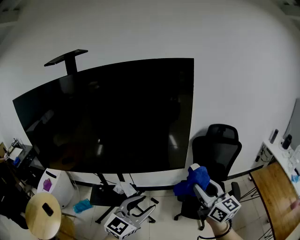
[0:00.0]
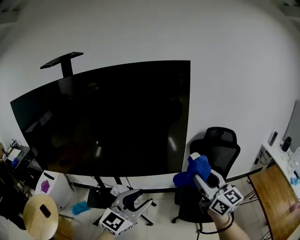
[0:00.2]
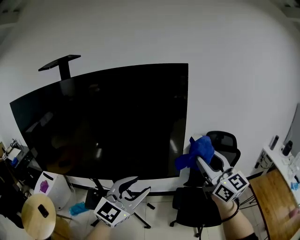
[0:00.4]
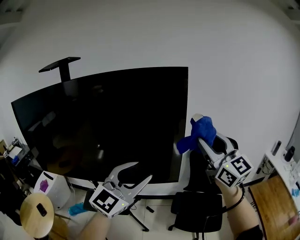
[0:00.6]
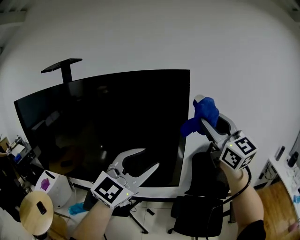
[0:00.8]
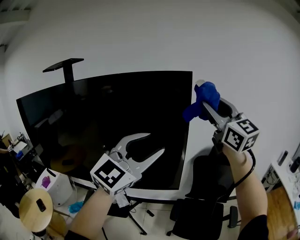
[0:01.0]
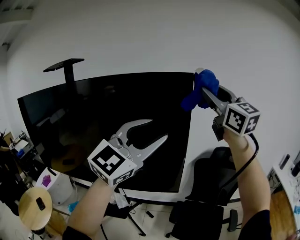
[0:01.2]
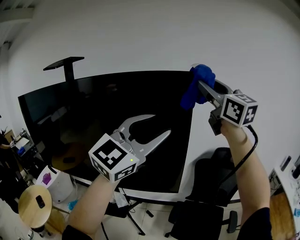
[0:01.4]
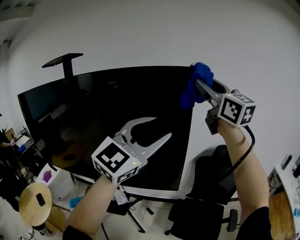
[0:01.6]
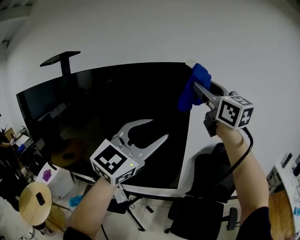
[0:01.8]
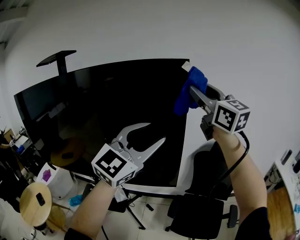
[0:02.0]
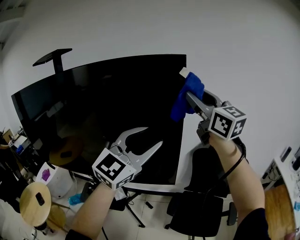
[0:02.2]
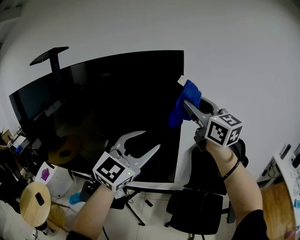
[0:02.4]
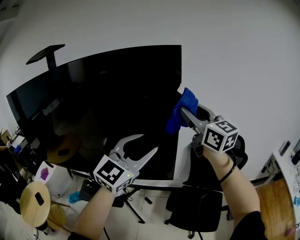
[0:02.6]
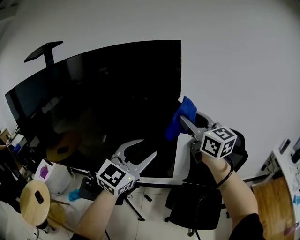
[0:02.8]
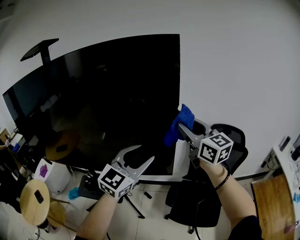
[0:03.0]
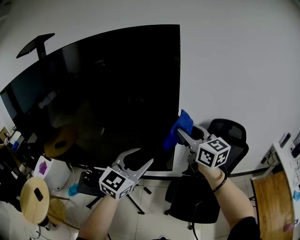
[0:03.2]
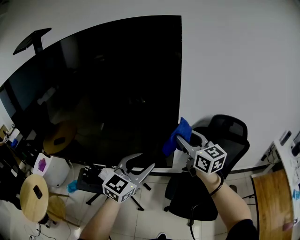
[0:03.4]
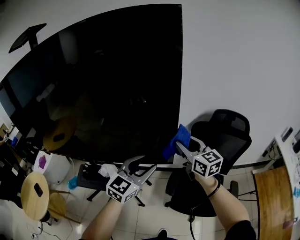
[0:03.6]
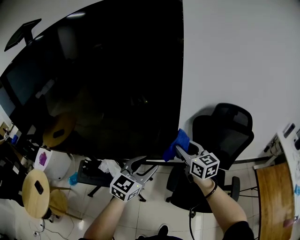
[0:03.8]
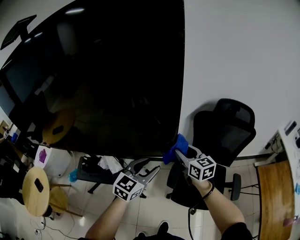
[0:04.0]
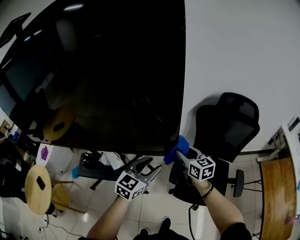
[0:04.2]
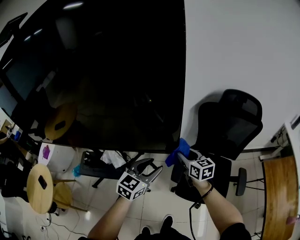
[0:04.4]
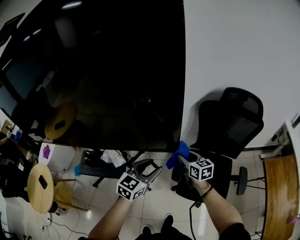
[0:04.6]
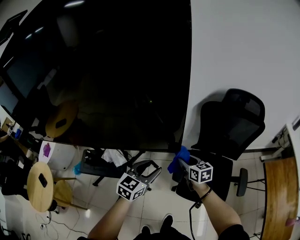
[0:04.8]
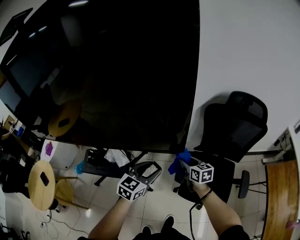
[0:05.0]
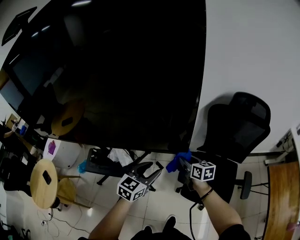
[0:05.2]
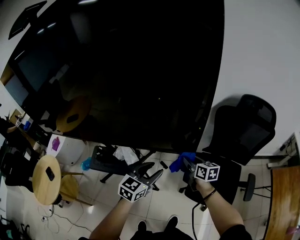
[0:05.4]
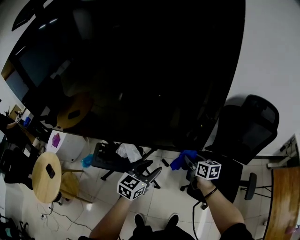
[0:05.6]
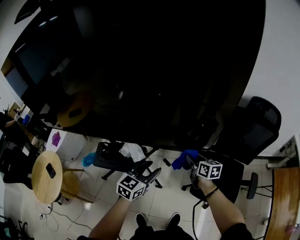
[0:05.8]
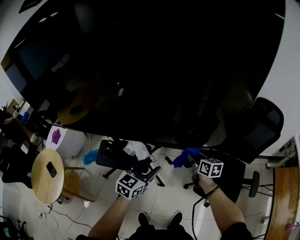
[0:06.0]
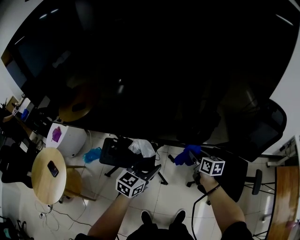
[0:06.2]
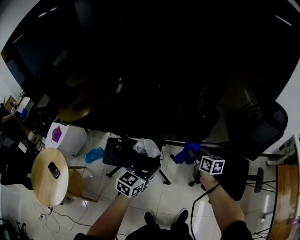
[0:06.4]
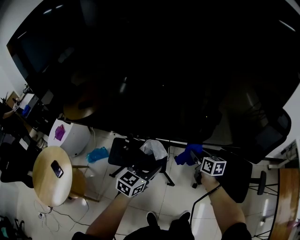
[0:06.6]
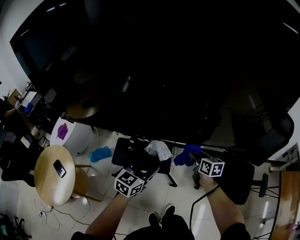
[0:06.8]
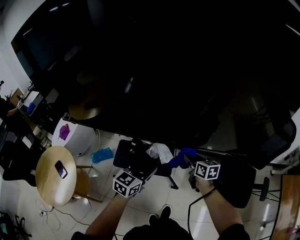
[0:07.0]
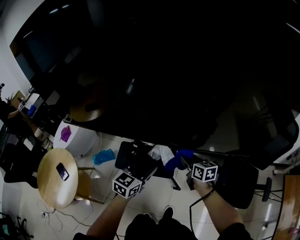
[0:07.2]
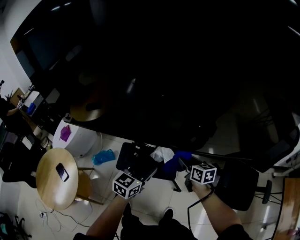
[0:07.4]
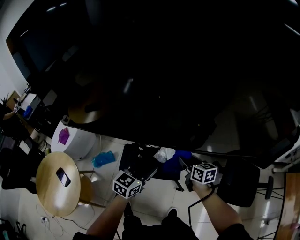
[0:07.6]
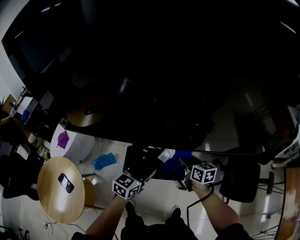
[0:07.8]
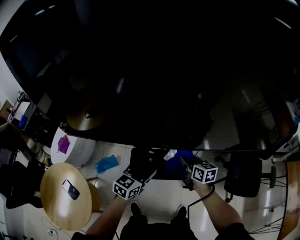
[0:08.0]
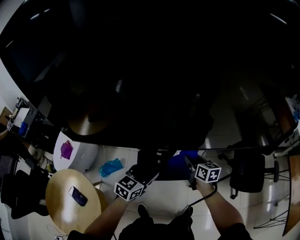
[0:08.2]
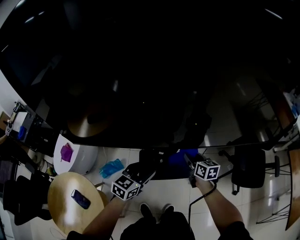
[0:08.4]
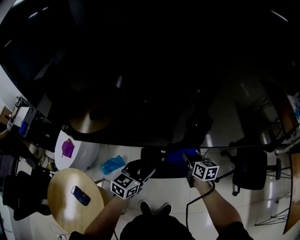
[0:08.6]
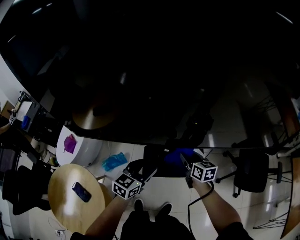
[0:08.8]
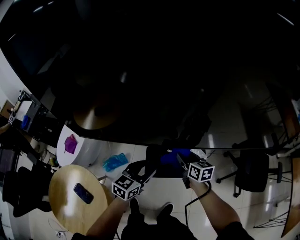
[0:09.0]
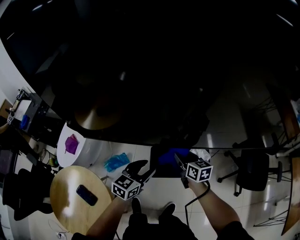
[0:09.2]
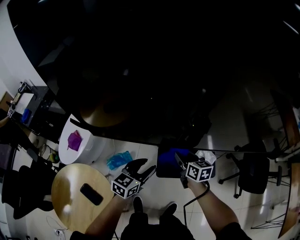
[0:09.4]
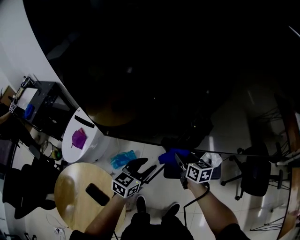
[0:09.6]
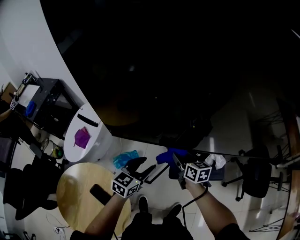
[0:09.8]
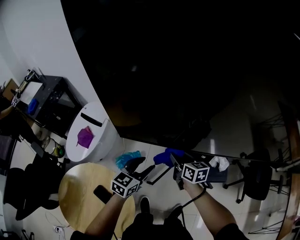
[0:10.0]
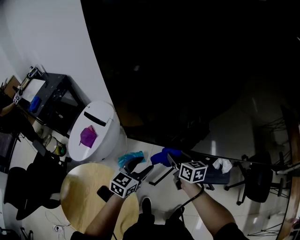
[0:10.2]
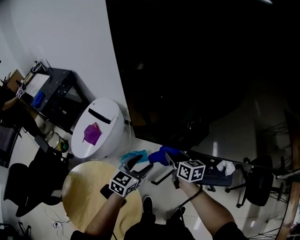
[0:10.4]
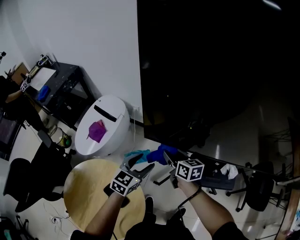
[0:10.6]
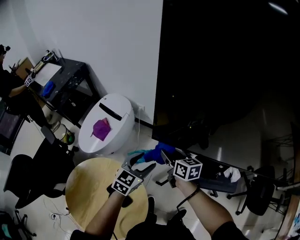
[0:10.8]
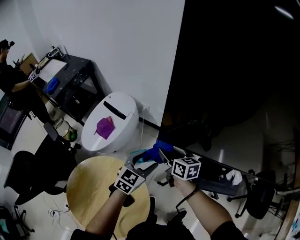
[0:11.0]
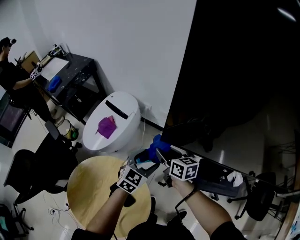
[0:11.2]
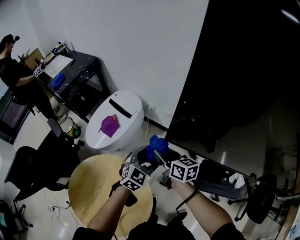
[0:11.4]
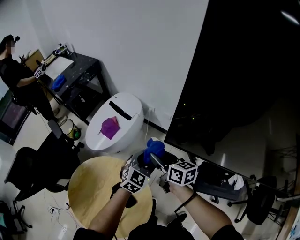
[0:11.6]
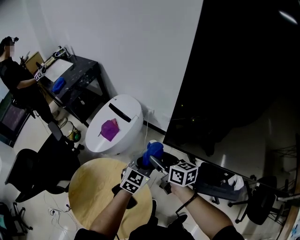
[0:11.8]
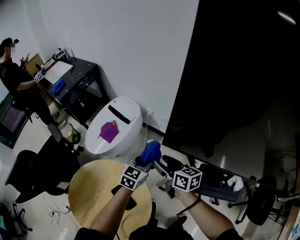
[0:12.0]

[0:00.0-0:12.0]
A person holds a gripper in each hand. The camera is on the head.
0:00.0 to 0:01.6: The two grippers go roughly 40 cm upward and forward. The right gripper changes its angle by about 30 degrees. Meanwhile the left gripper changes its angle by about 20 degrees.
0:01.6 to 0:03.0: The grippers both shift downward by roughly 25 cm.
0:03.0 to 0:04.4: The two grippers go some 35 cm downward. The left gripper changes its angle by approximately 30 degrees. Meanwhile the right gripper swivels roughly 30 degrees.
0:04.4 to 0:06.0: The two grippers go some 20 cm to the left.
0:06.0 to 0:07.6: Both grippers travel together to the left, about 30 cm.
0:07.6 to 0:09.0: The two grippers go approximately 20 cm to the left.
0:09.0 to 0:10.4: The two grippers go about 35 cm to the left.
0:10.4 to 0:12.0: The right gripper shifts about 15 cm to the left, and opens. The left gripper travels to the left and forward by roughly 10 cm, and closes.

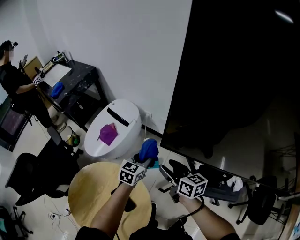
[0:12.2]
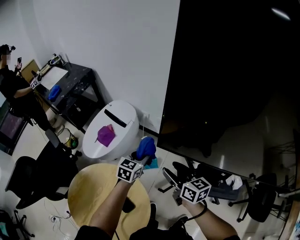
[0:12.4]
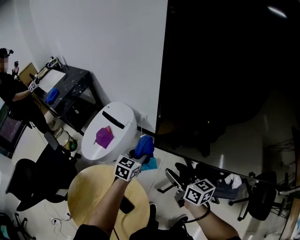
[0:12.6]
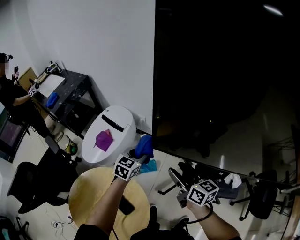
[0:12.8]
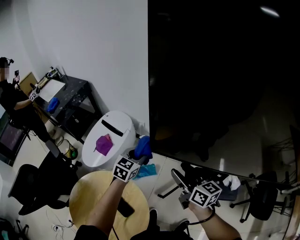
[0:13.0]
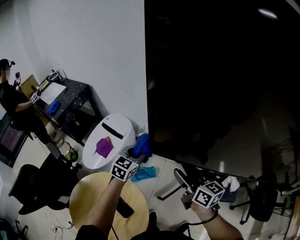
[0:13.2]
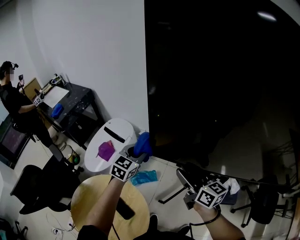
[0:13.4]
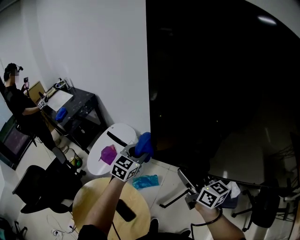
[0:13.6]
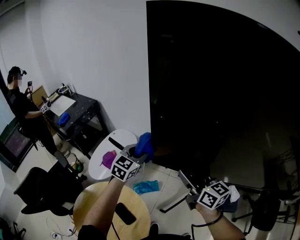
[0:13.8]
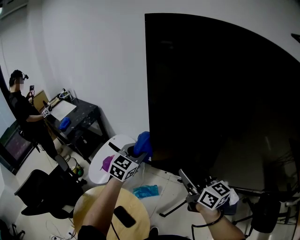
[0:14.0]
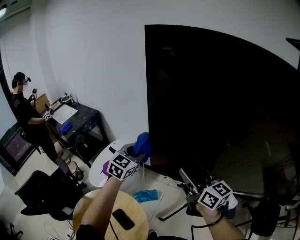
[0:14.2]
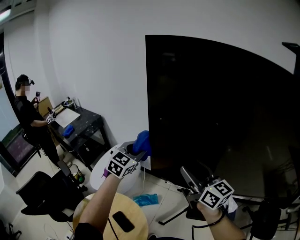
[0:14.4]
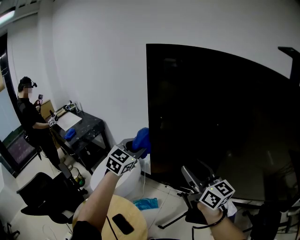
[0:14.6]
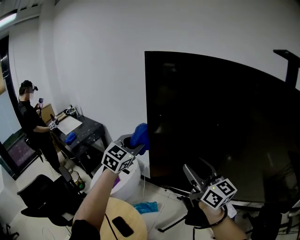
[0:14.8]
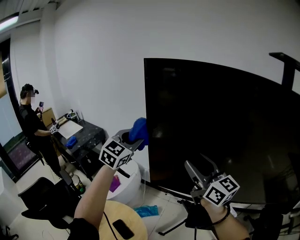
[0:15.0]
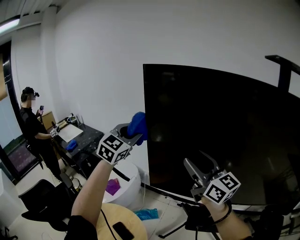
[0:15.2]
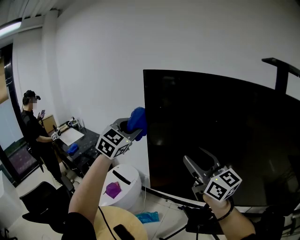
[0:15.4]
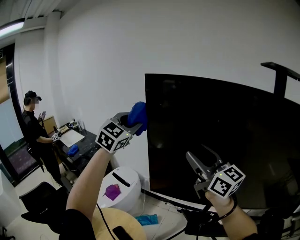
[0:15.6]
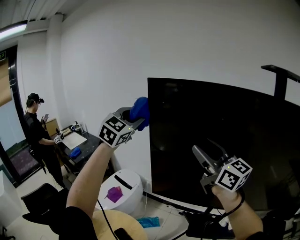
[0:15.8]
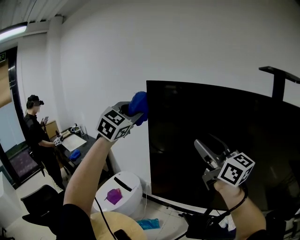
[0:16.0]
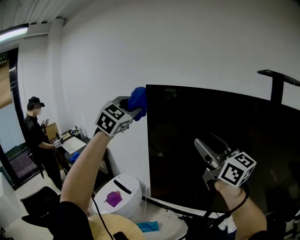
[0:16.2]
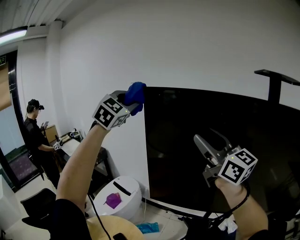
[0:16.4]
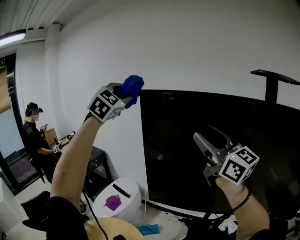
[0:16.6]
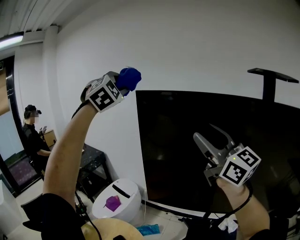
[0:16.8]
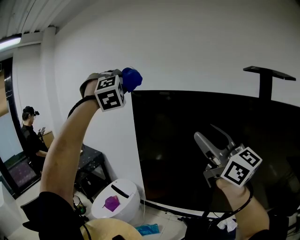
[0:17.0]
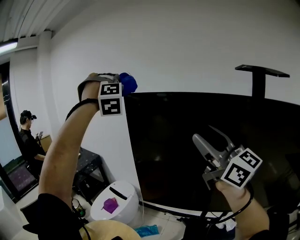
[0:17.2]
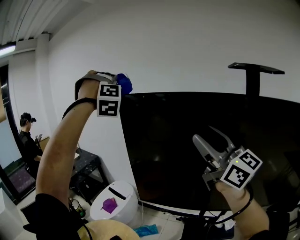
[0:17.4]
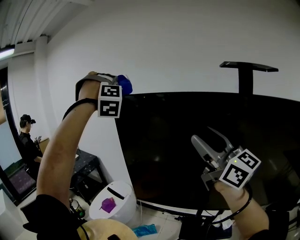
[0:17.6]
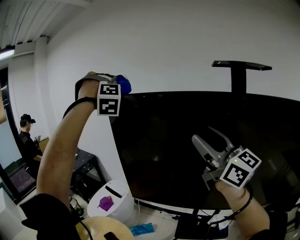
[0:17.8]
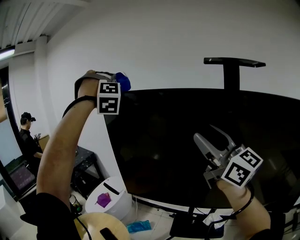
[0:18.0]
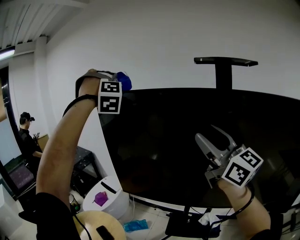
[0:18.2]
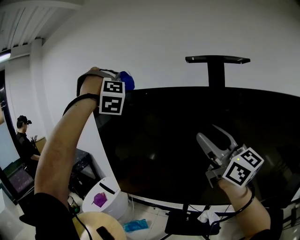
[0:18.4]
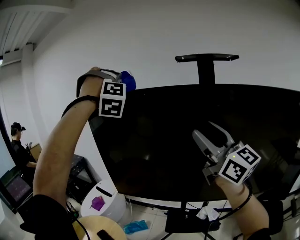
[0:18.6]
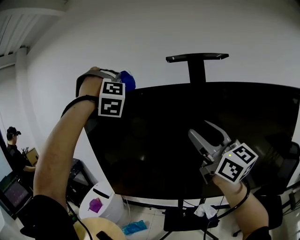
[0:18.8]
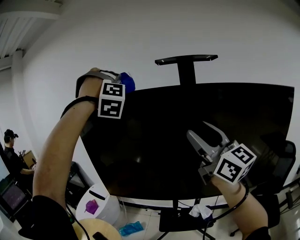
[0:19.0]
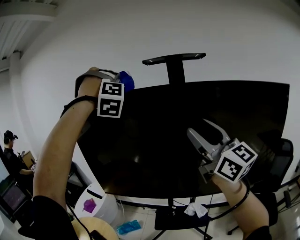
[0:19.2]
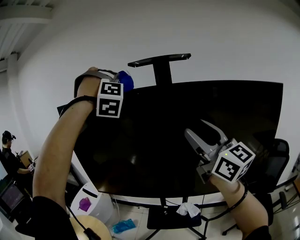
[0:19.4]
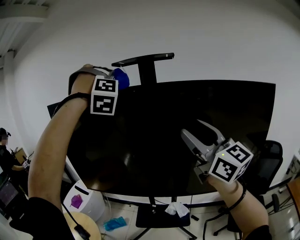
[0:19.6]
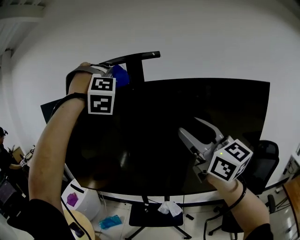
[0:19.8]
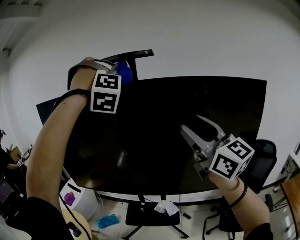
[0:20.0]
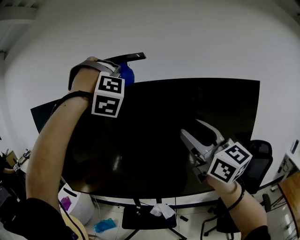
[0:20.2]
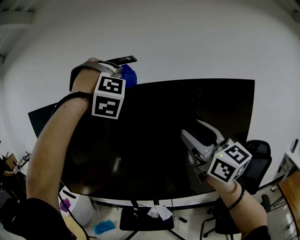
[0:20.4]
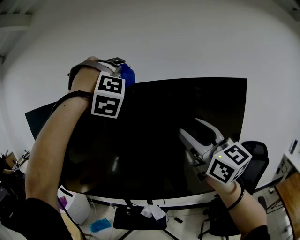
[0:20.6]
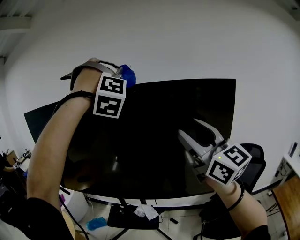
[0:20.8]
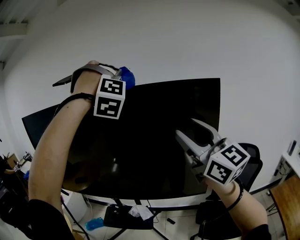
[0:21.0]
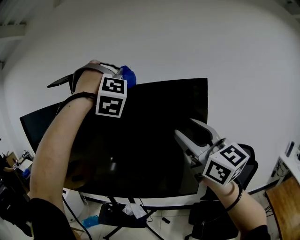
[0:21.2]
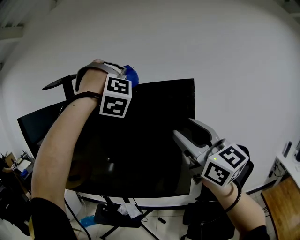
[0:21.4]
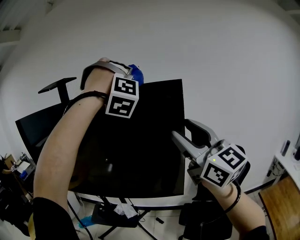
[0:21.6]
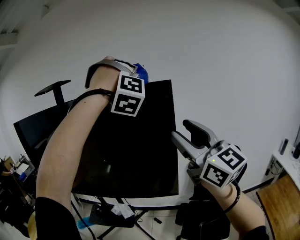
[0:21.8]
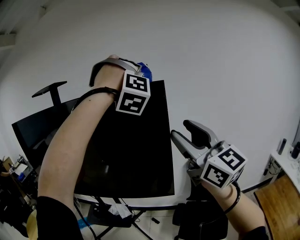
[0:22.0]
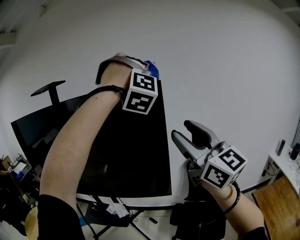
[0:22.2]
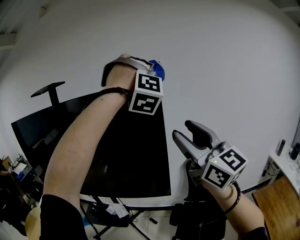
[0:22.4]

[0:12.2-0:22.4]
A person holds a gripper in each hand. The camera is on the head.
0:12.2 to 0:13.6: The left gripper travels upward by about 15 cm, and swivels about 20 degrees; the right gripper moves upward and to the right, some 20 cm.
0:13.6 to 0:15.2: Both grippers travel together upward, roughly 30 cm. The right gripper rotates approximately 30 degrees. Meanwhile the left gripper turns by about 30 degrees.
0:15.2 to 0:16.6: The grippers both shift upward by about 20 cm. The left gripper rotates roughly 30 degrees.
0:16.6 to 0:18.0: The left gripper shifts approximately 15 cm to the right and backward, and rotates around the line of its fingers by about 50 degrees, clockwise from behind. Meanwhile the right gripper is displaced backward and to the right by about 20 cm.
0:18.0 to 0:19.4: The left gripper goes about 30 cm to the right and backward. Meanwhile the right gripper travels backward and to the right by some 25 cm.
0:19.4 to 0:21.0: Both grippers travel together to the right and backward, roughly 40 cm.
0:21.0 to 0:22.4: The left gripper is displaced to the right and backward by approximately 35 cm; the right gripper travels to the right and backward by approximately 20 cm.

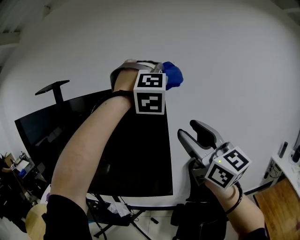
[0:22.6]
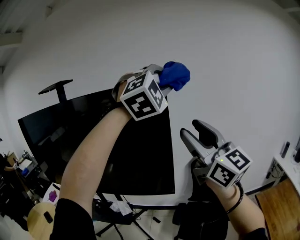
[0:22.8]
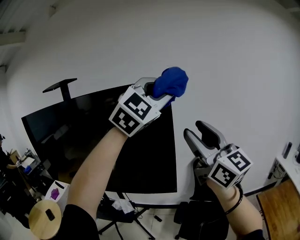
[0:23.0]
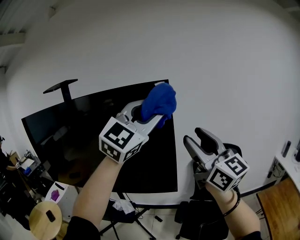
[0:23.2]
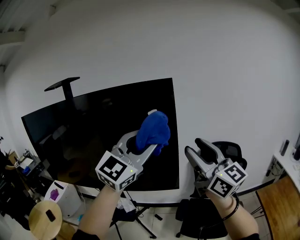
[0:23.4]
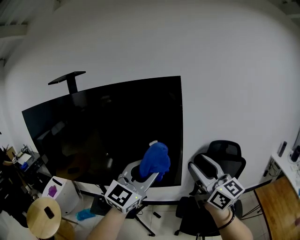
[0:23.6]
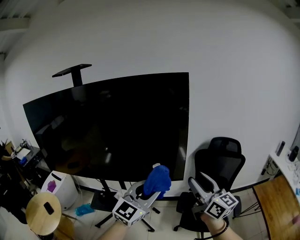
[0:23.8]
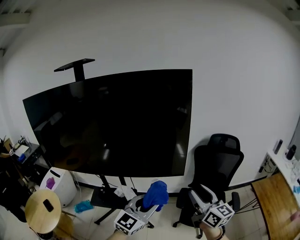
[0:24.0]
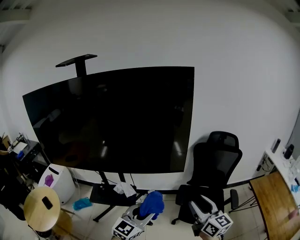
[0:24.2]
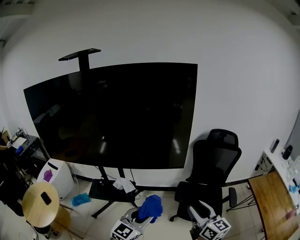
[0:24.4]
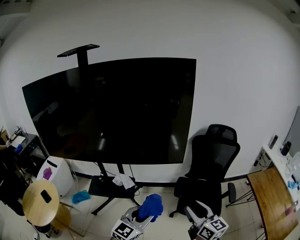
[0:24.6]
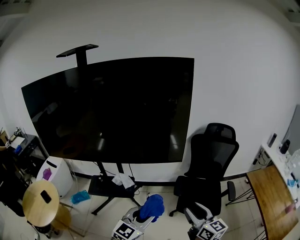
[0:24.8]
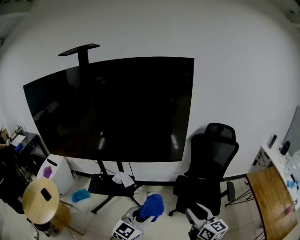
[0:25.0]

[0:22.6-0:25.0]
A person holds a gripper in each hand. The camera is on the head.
0:22.6 to 0:23.8: The left gripper shifts roughly 40 cm downward, backward and to the left, and rolls counterclockwise, seen from behind, by approximately 80 degrees. The right gripper goes roughly 25 cm downward, and changes its angle by roughly 20 degrees.
0:23.8 to 0:25.0: The two grippers go roughly 25 cm downward and backward.
